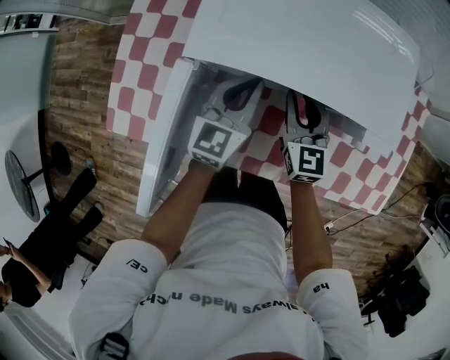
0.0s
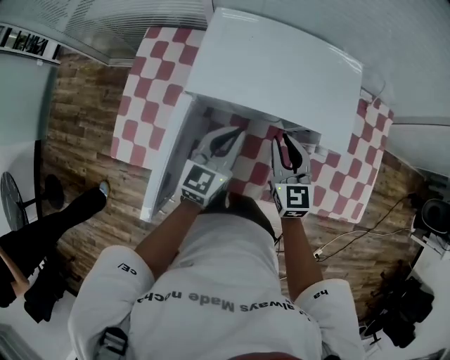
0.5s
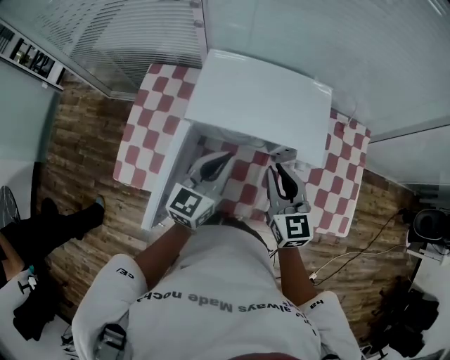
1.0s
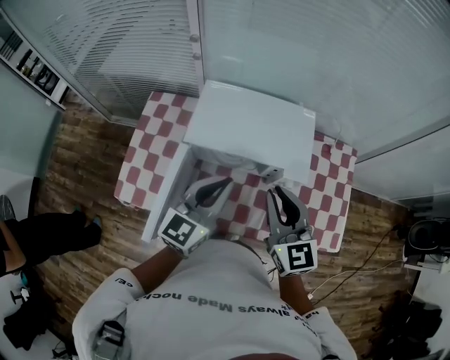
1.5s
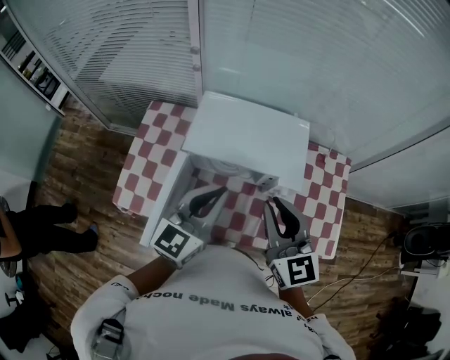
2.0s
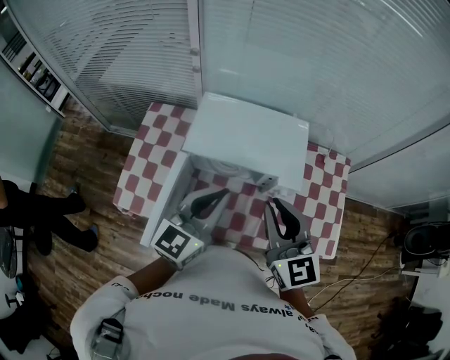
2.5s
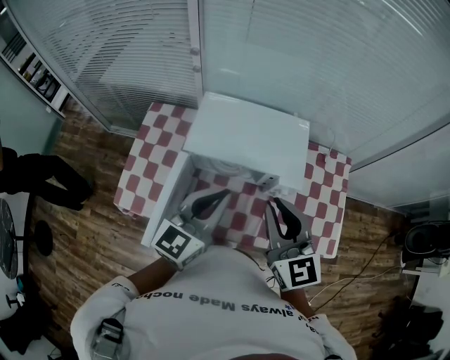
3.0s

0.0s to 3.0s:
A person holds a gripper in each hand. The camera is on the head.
0.0s to 1.5s: Both grippers move upward and backward, roughly 35 cm.
1.5s to 3.0s: The right gripper heads upward, covering some 5 cm.

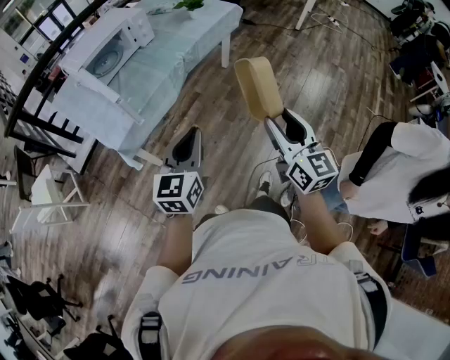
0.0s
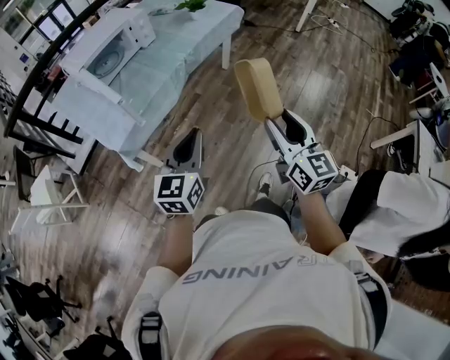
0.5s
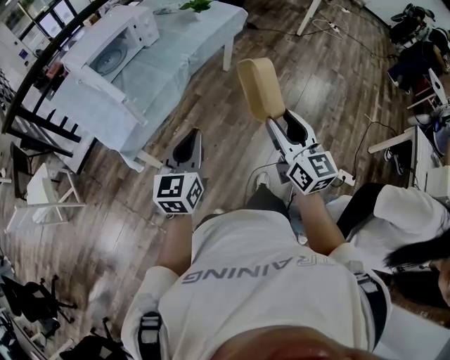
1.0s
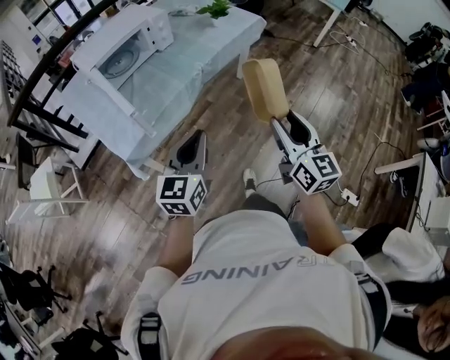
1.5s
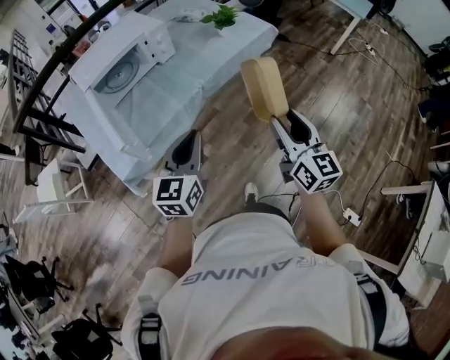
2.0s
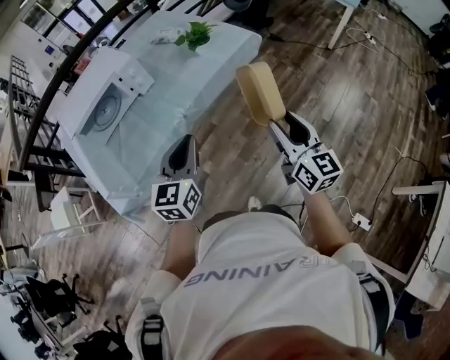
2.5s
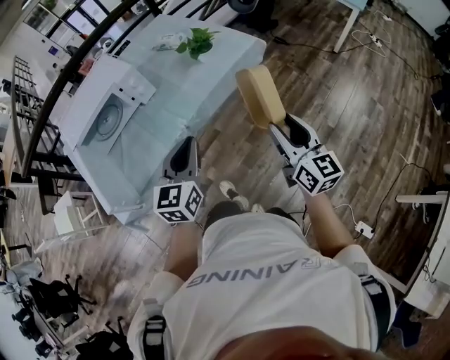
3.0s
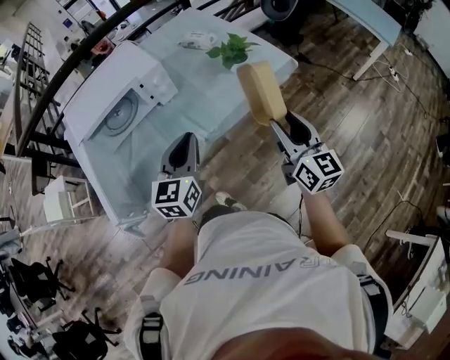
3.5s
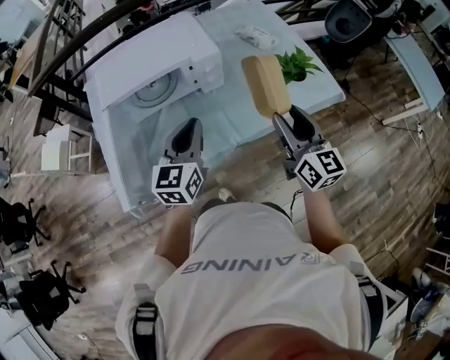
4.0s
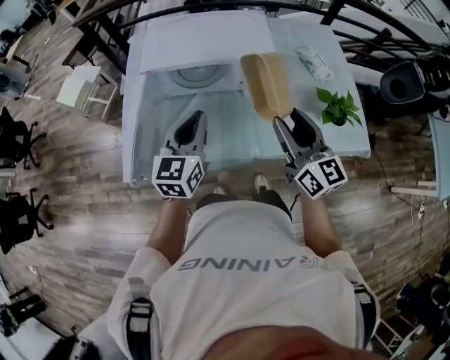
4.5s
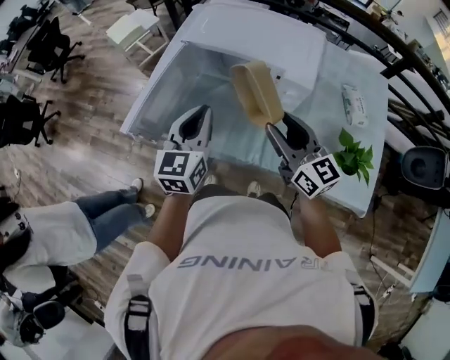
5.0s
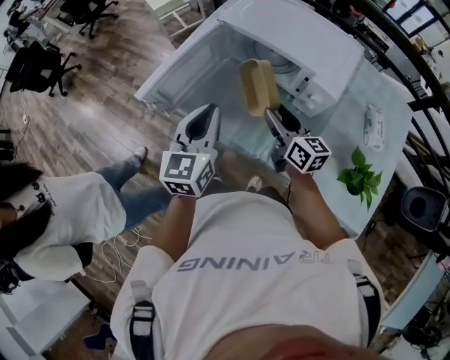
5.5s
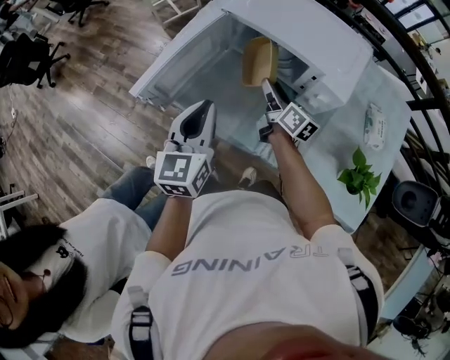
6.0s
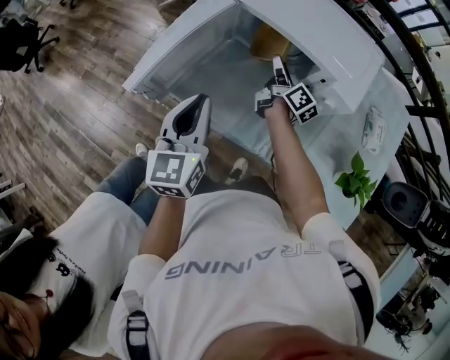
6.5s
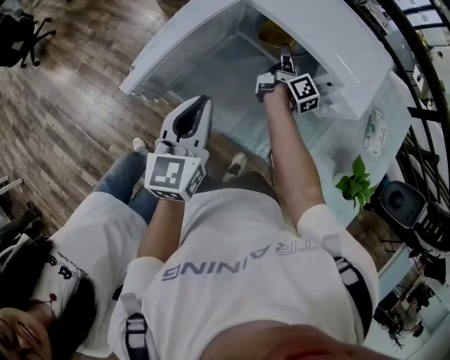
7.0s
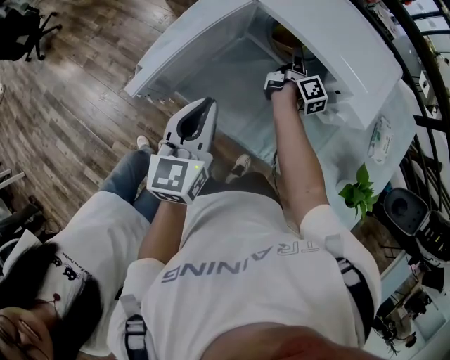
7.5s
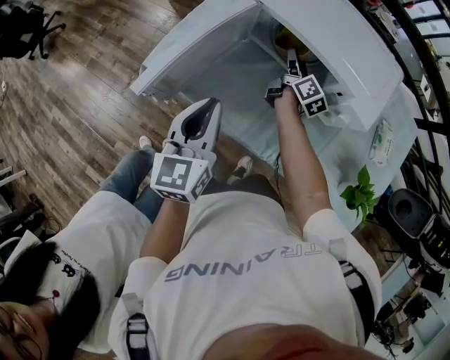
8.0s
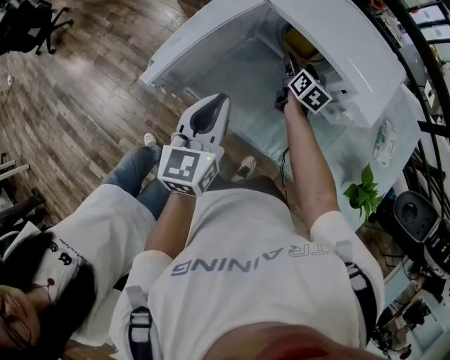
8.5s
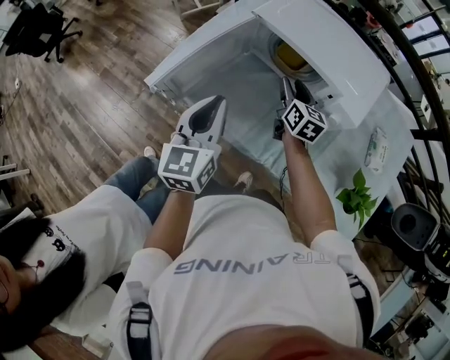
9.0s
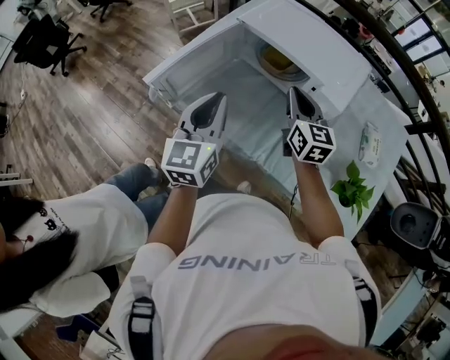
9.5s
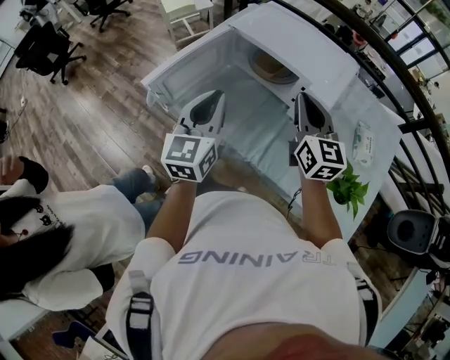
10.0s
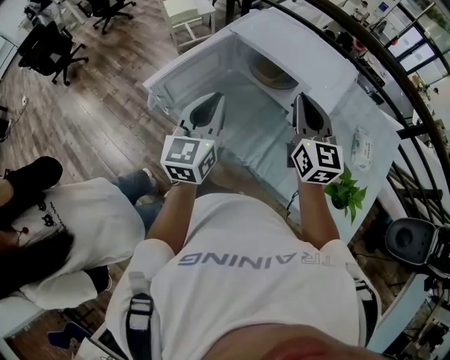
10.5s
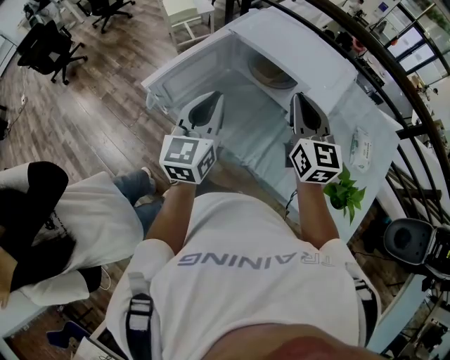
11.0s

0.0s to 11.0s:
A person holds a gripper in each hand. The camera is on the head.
0.0s to 2.0s: Both grippers travel together forward, roughly 25 cm.
2.0s to 3.5s: The two grippers go approximately 25 cm forward.
3.5s to 5.5s: The right gripper changes place by roughly 40 cm, and swivels about 80 degrees. Meanwhile the left gripper shifts by some 20 cm, and rotates roughly 70 degrees.
5.5s to 7.5s: The right gripper is displaced forward and downward by roughly 25 cm, and swivels roughly 50 degrees, while the left gripper travels to the left, downward and forward by about 10 cm.
7.5s to 9.0s: The right gripper is displaced backward and upward by about 10 cm, twists about 50 degrees counterclockwise, seen from behind, and opens, then closes again.
9.0s to 11.0s: The right gripper heads upward and backward, covering approximately 25 cm, rotates some 30 degrees, and closes up. Meanwhile the left gripper shifts approximately 10 cm upward and to the right.

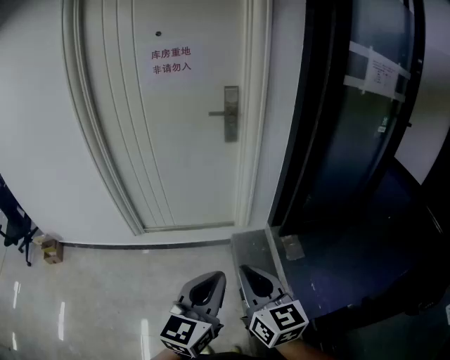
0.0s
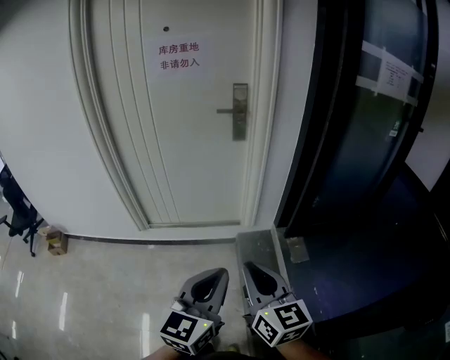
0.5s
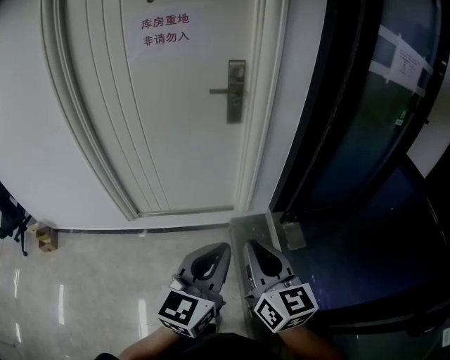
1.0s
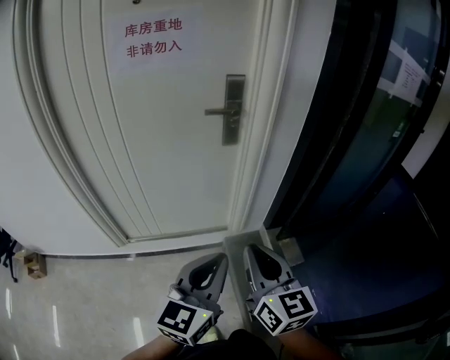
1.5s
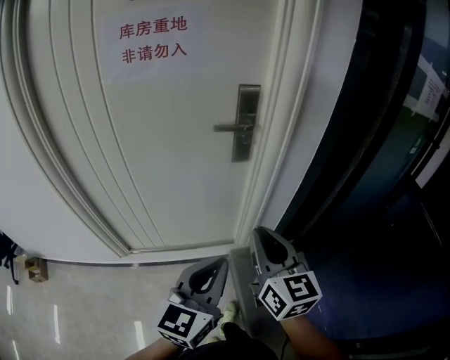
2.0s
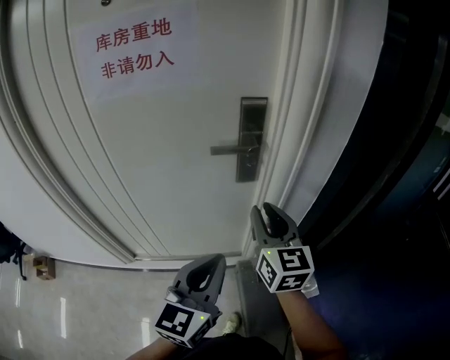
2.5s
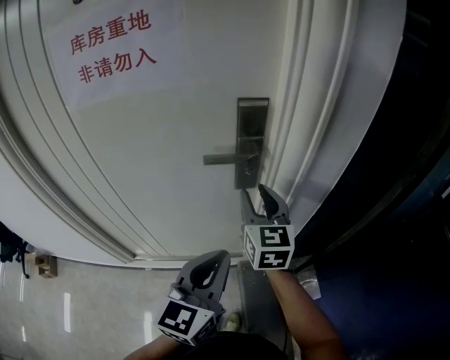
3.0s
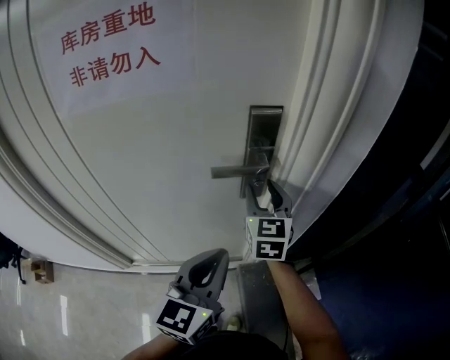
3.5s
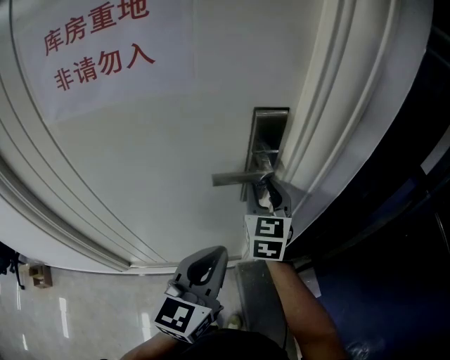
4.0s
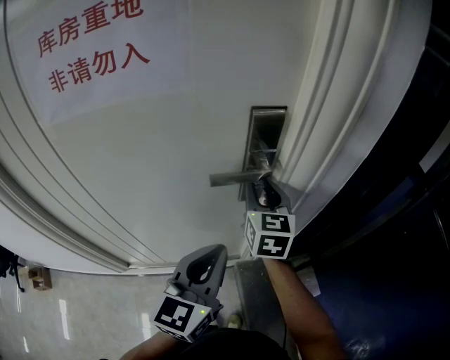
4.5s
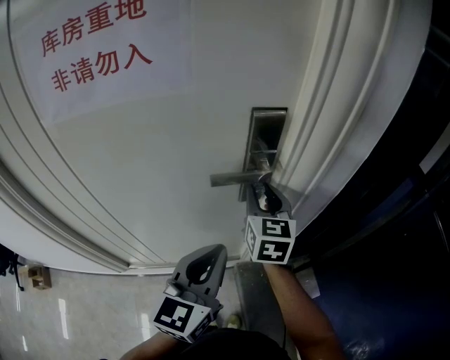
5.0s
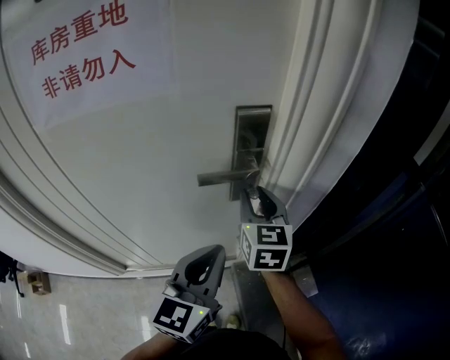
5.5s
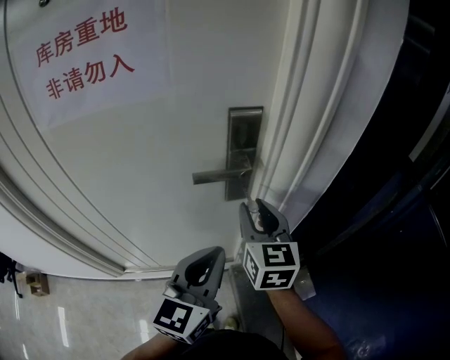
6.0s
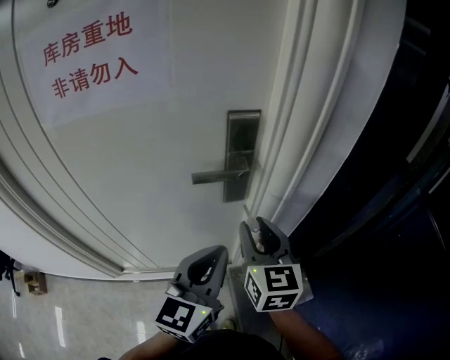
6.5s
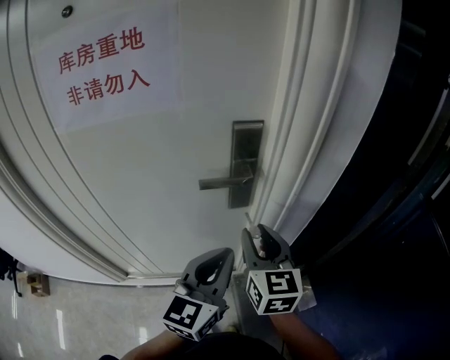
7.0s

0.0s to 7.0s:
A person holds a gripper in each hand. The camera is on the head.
0.0s to 2.0s: The grippers both shift forward by some 35 cm.
2.0s to 3.5s: The left gripper goes about 20 cm forward. Meanwhile the right gripper moves forward, roughly 35 cm, and opens up.
3.5s to 5.0s: The grippers make only small movements.
5.0s to 7.0s: The left gripper ends up approximately 5 cm from where it was. The right gripper travels backward by about 10 cm.

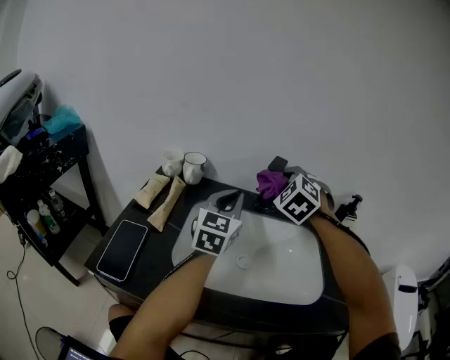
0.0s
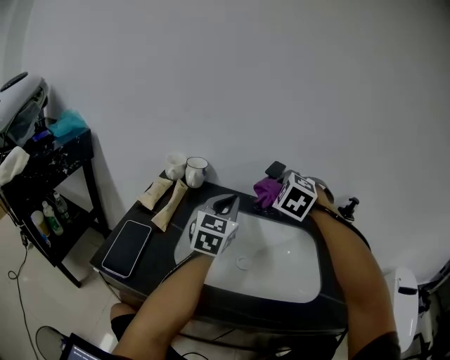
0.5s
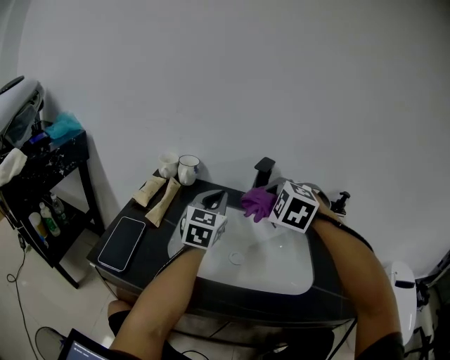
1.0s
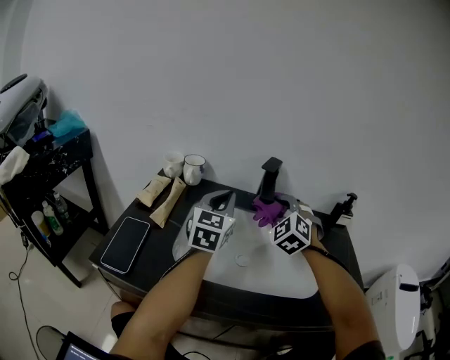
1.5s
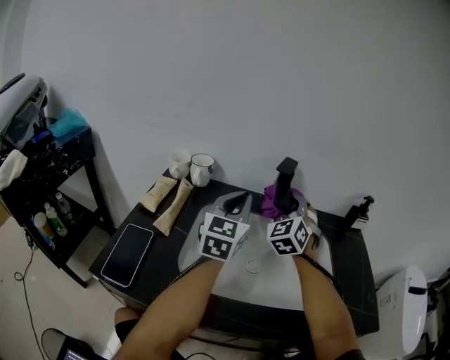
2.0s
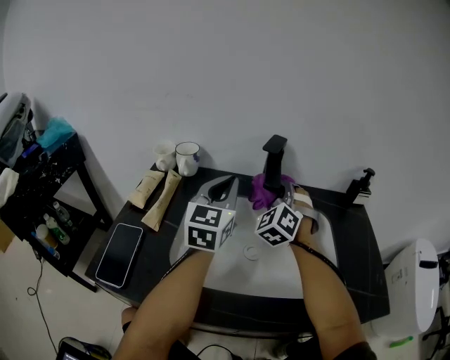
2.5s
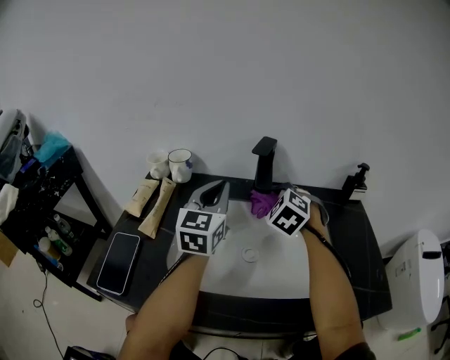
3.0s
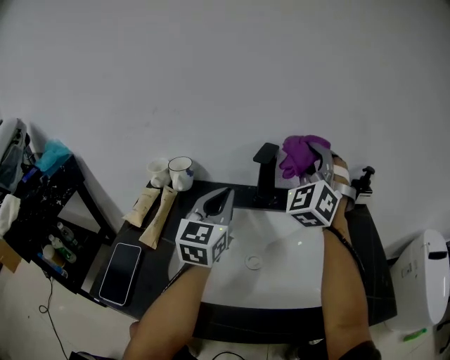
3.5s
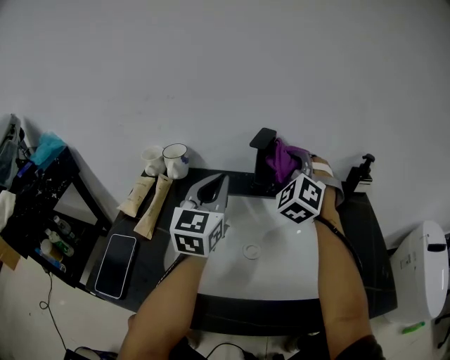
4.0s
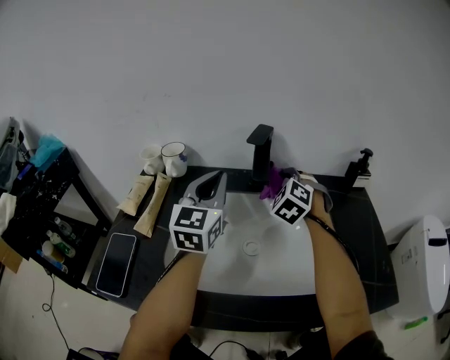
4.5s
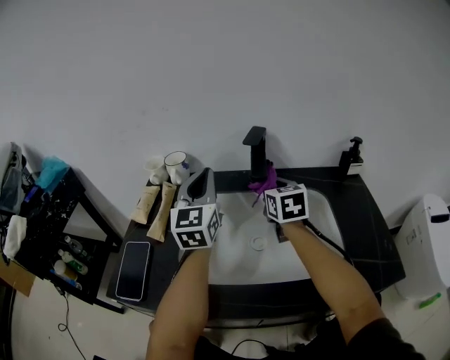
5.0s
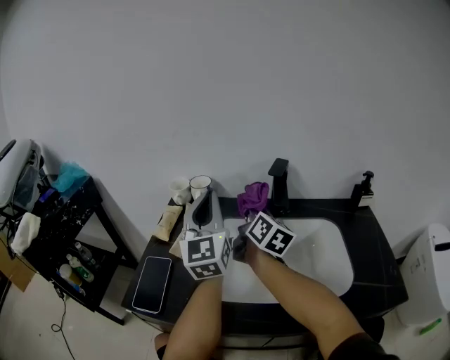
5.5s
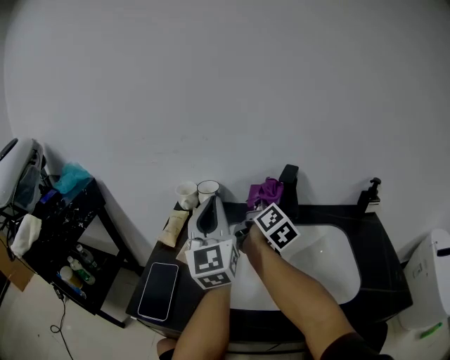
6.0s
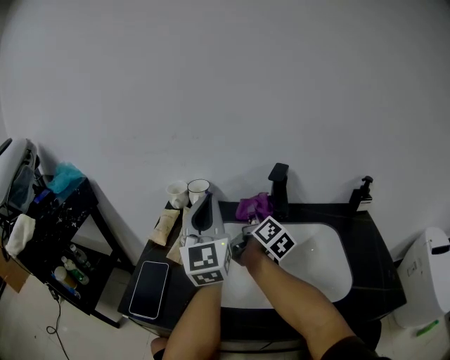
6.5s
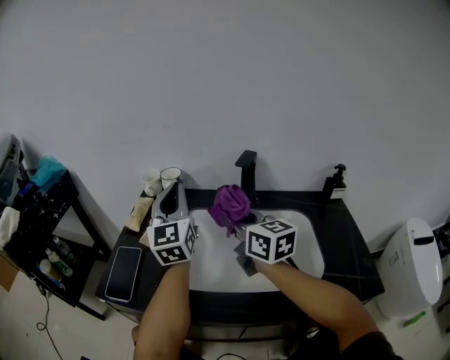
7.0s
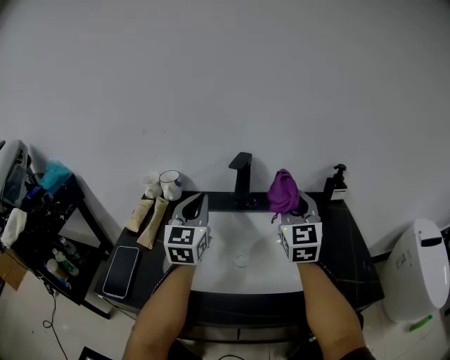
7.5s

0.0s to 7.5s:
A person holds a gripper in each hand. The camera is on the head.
0.0s to 2.0s: The right gripper heads downward, covering some 5 cm, reaches approximately 10 cm backward, then returns, and turns by approximately 30 degrees.
2.0s to 4.0s: The right gripper swings up and down, approximately 20 cm each way, with 2 reversals.
4.0s to 5.5s: The right gripper heads to the left and backward, covering approximately 15 cm, and rotates around the line of its fingers by some 110 degrees, clockwise from behind, while the left gripper travels to the left, upward and backward by some 15 cm, and changes its angle by approximately 20 degrees.
5.5s to 7.5s: The right gripper moves to the right and backward, roughly 20 cm, and twists approximately 60 degrees counterclockwise, seen from behind, while the left gripper travels to the right and downward by some 10 cm.
